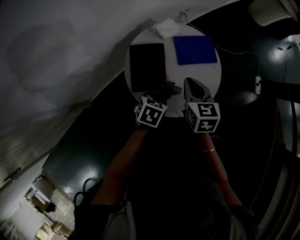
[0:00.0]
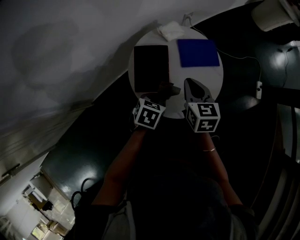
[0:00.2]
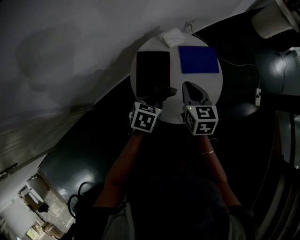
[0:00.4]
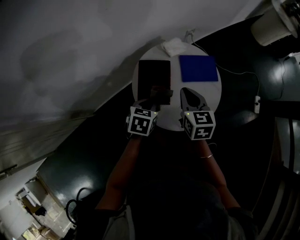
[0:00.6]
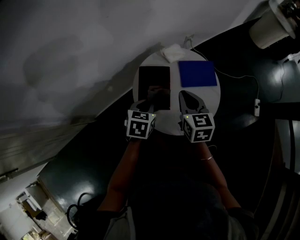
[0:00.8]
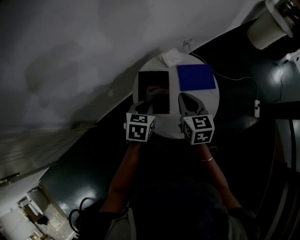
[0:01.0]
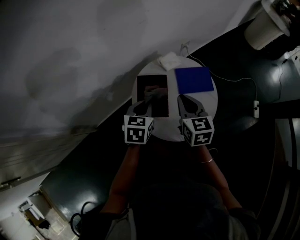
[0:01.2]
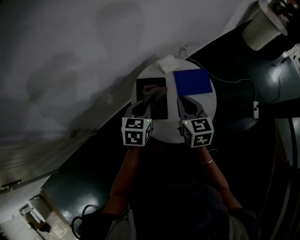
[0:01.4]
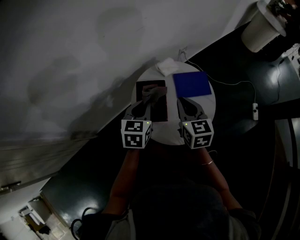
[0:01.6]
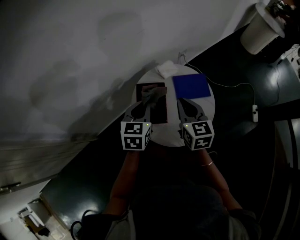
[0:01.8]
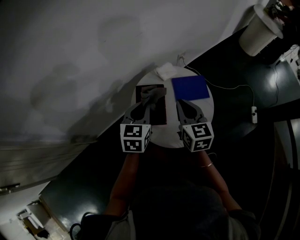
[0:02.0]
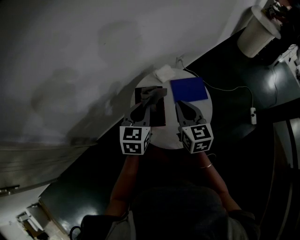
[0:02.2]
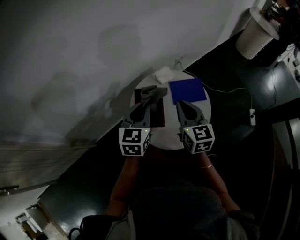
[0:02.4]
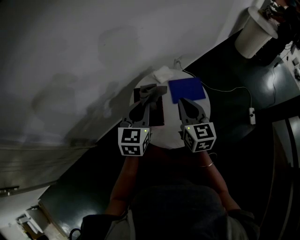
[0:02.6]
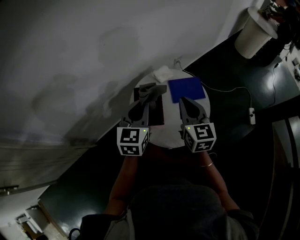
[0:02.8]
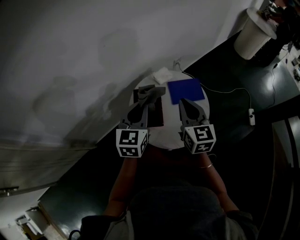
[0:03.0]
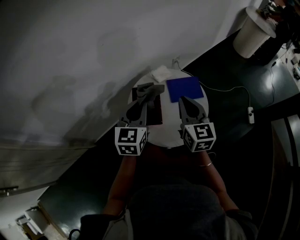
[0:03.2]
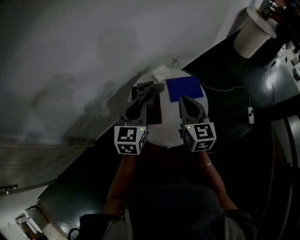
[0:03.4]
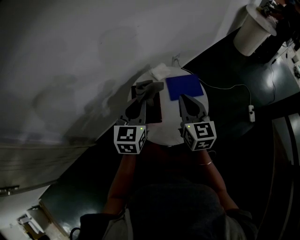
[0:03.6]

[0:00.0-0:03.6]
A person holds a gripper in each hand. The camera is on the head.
0:00.0 to 0:01.8: The left gripper travels upward, forward and to the left by some 20 cm, and turns by roughly 40 degrees; the right gripper moves upward, roughly 10 cm.
0:01.8 to 0:03.6: The two grippers go approximately 5 cm upward.

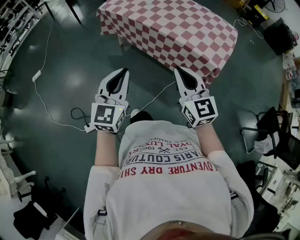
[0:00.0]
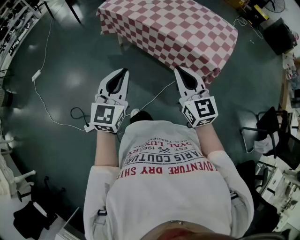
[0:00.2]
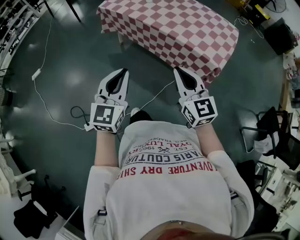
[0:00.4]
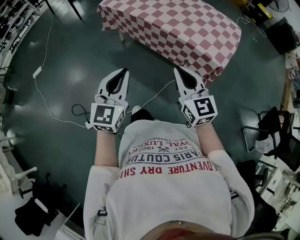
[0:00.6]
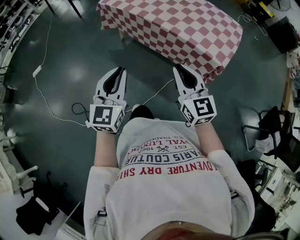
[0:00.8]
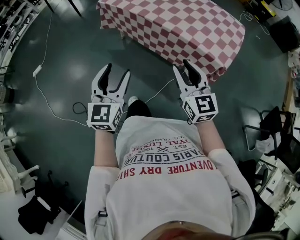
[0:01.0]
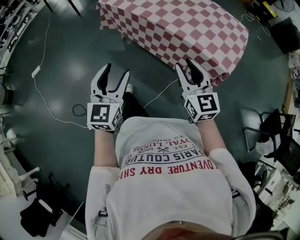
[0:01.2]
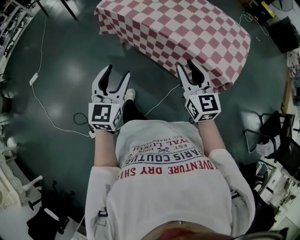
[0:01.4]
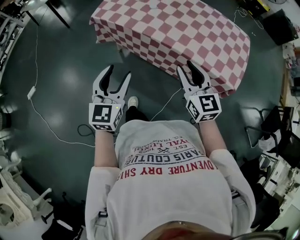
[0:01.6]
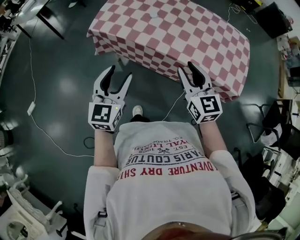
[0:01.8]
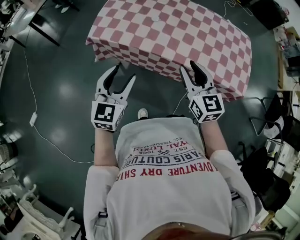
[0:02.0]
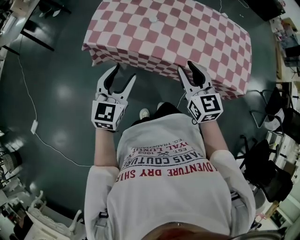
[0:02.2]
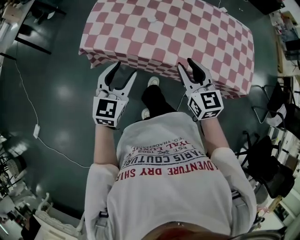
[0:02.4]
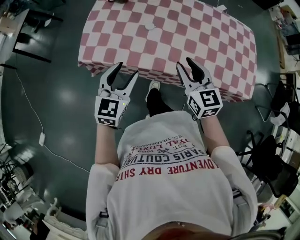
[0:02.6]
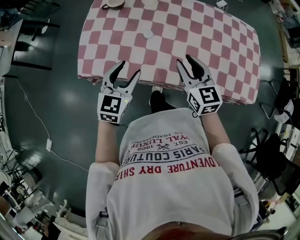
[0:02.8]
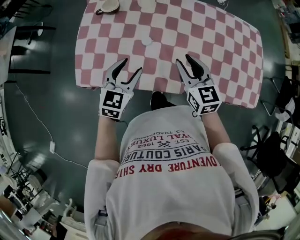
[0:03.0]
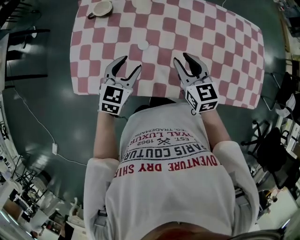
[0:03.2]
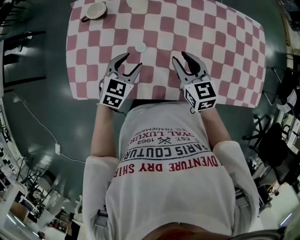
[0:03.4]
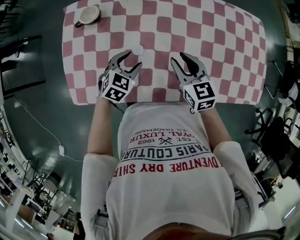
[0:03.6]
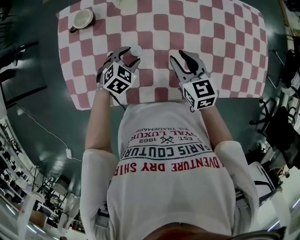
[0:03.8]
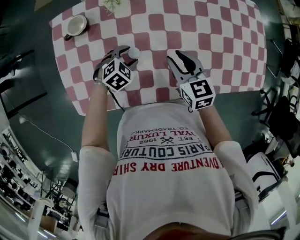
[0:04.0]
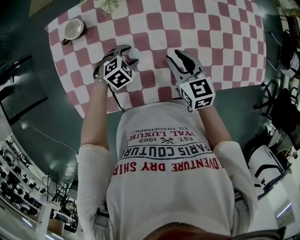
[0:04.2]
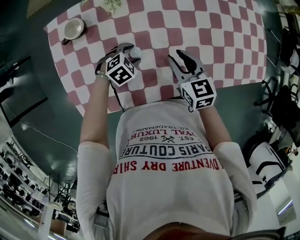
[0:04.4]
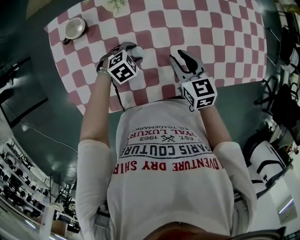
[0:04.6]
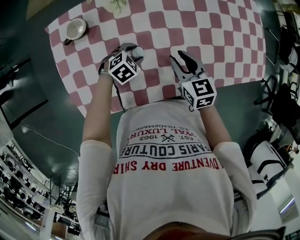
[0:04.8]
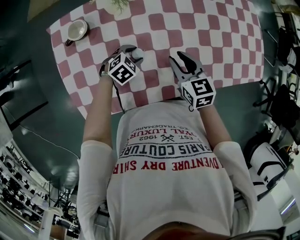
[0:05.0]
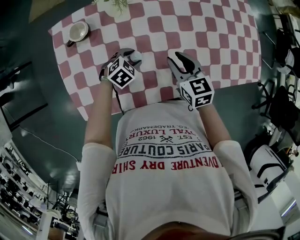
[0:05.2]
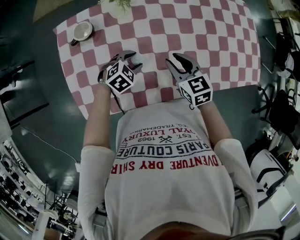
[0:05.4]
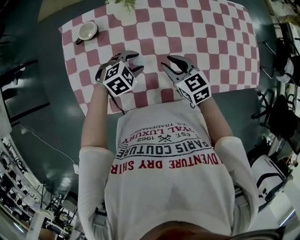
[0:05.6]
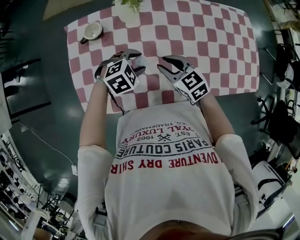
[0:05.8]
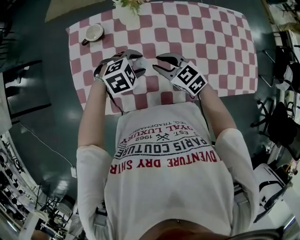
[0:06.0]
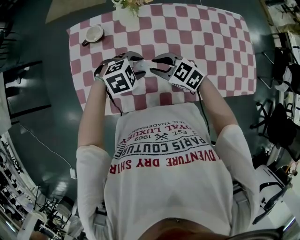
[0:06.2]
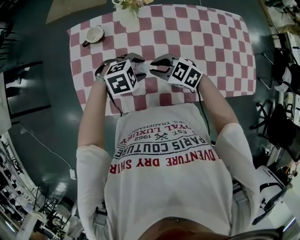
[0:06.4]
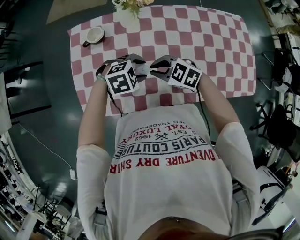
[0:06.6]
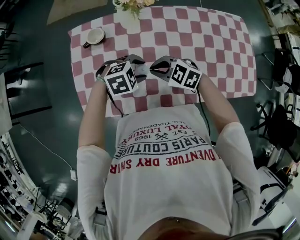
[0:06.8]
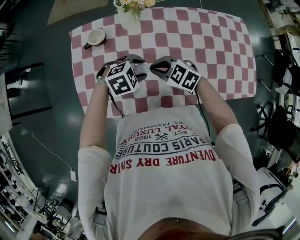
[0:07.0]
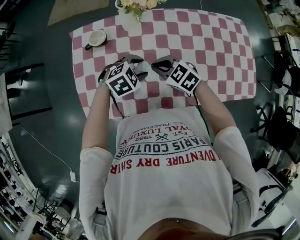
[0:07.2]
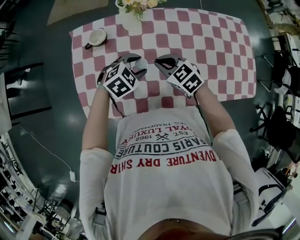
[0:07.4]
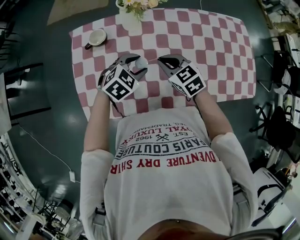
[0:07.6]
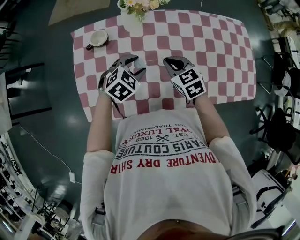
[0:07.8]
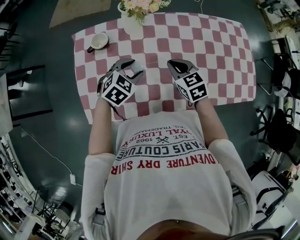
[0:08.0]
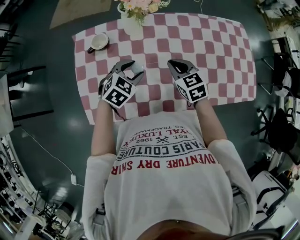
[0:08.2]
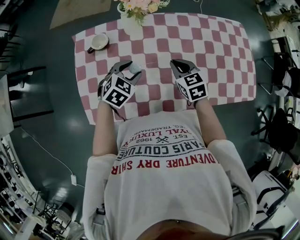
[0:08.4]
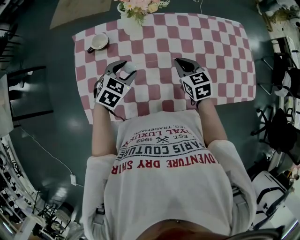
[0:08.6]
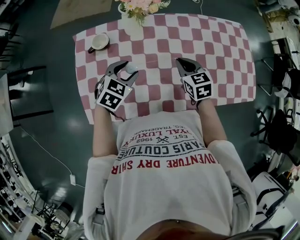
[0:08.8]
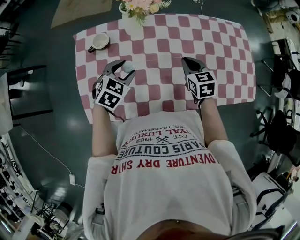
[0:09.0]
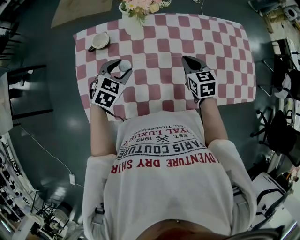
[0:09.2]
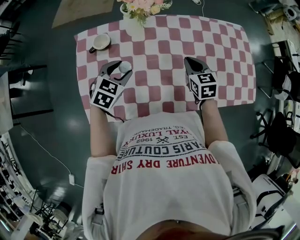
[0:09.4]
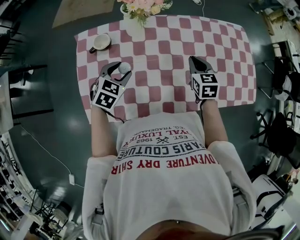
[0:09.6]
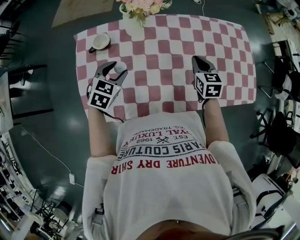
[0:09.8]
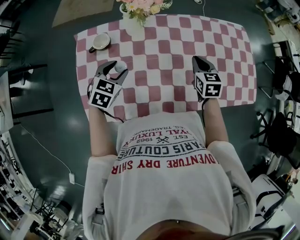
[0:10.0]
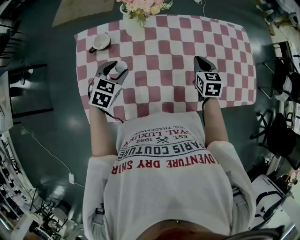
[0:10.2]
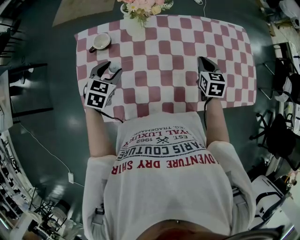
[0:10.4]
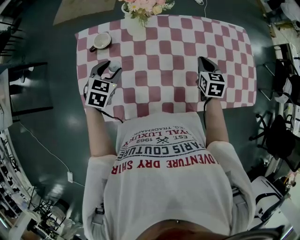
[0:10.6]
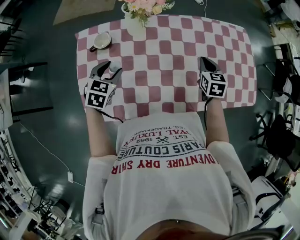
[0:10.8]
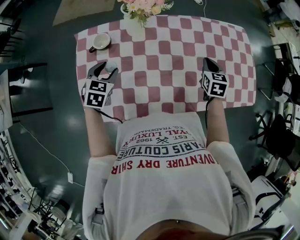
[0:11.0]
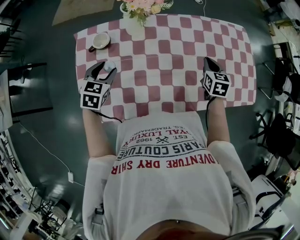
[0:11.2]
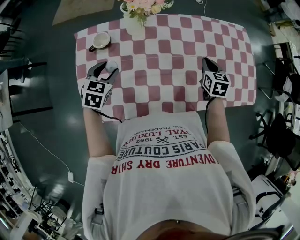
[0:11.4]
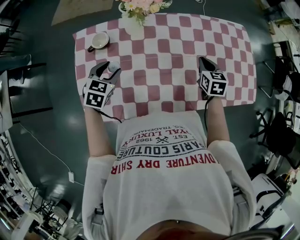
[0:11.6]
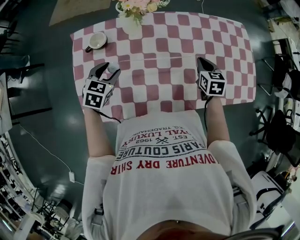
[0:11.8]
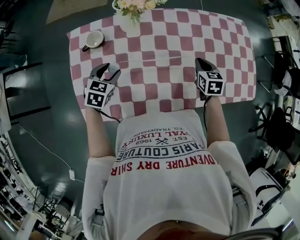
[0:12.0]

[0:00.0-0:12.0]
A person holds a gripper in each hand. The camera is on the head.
0:00.0 to 0:01.6: The right gripper is displaced forward by roughly 25 cm, and opens. The left gripper moves forward and to the left, some 30 cm, and opens up.
0:01.6 to 0:03.0: The two grippers go about 40 cm forward. The left gripper rotates about 40 degrees. The right gripper changes its angle by about 20 degrees.
0:03.0 to 0:04.4: The right gripper shifts some 10 cm downward, and changes its angle by roughly 20 degrees; the left gripper goes about 20 cm downward, and angles its fingers downward, by about 40 degrees.
0:04.4 to 0:06.0: The right gripper moves some 10 cm, and rotates some 40 degrees. Meanwhile the left gripper moves upward, about 15 cm.
0:06.0 to 0:07.6: The right gripper closes.
0:07.6 to 0:09.0: The left gripper shifts roughly 5 cm to the left, while the right gripper goes some 10 cm to the right, and changes its angle by approximately 30 degrees.
0:09.0 to 0:10.4: The left gripper is displaced to the left by about 5 cm. The right gripper is displaced to the right by some 10 cm.
0:10.4 to 0:12.0: The grippers stay close to where they were, moving slightly.

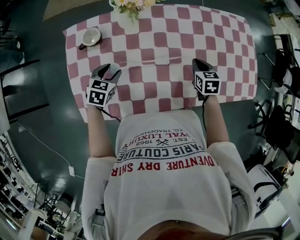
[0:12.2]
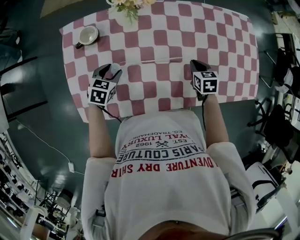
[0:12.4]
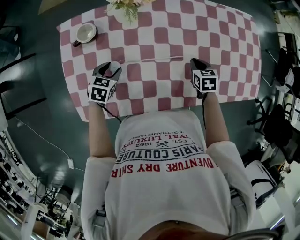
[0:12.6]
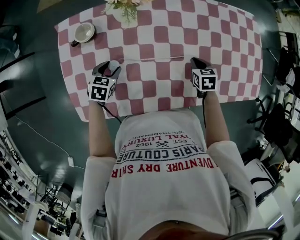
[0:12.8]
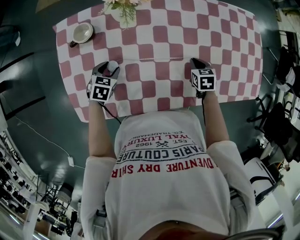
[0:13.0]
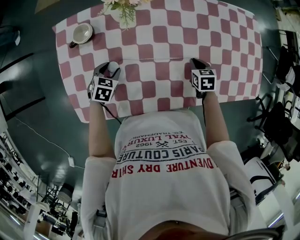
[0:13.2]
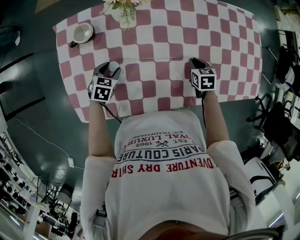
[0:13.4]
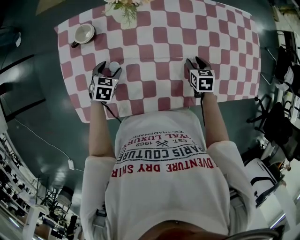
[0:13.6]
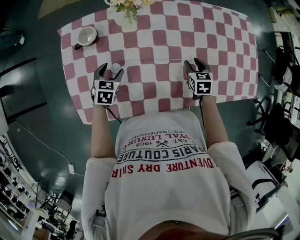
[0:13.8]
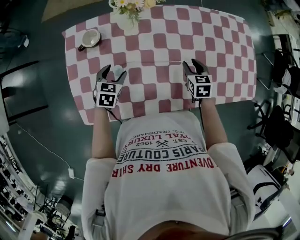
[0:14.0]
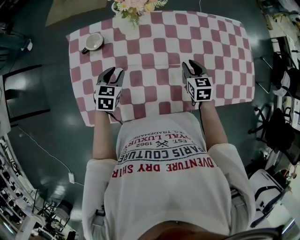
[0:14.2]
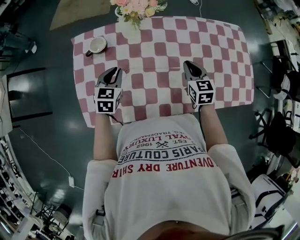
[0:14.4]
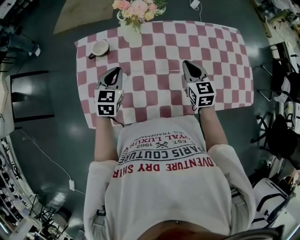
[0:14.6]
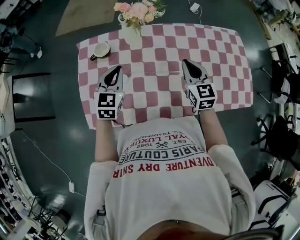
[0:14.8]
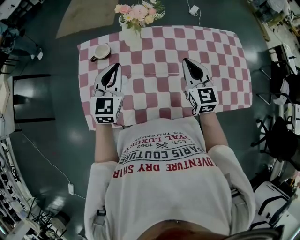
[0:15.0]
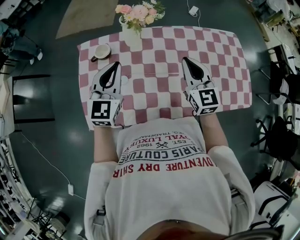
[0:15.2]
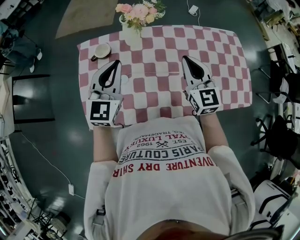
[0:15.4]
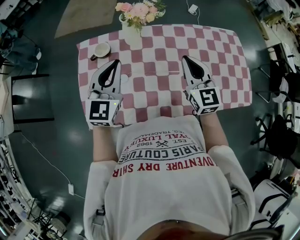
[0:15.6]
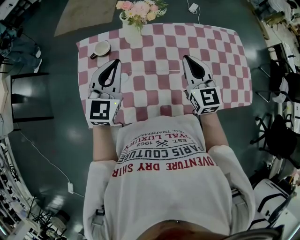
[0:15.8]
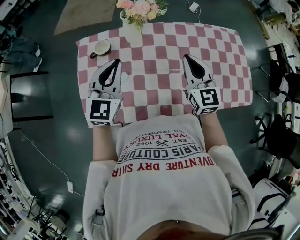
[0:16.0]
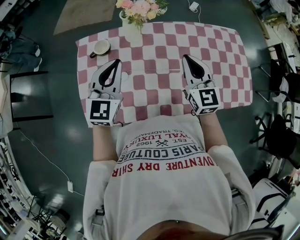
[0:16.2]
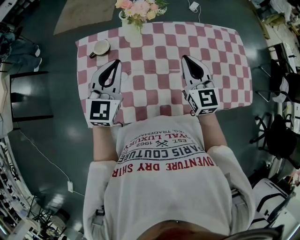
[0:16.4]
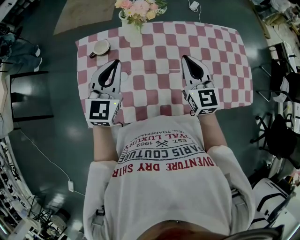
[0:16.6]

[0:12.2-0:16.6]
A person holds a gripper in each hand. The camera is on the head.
0:12.2 to 0:13.6: Both grippers move downward, approximately 5 cm. The right gripper opens its fingers.
0:13.6 to 0:15.2: Both grippers travel together upward, some 30 cm. The left gripper angles its fingers upward, by roughly 50 degrees, and closes; the right gripper angles its fingers upward, by roughly 50 degrees, and closes its fingers.
0:15.2 to 0:16.6: Both grippers stay about where they are.

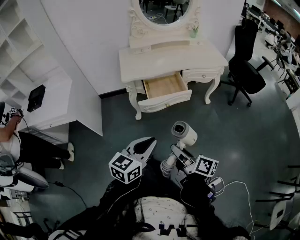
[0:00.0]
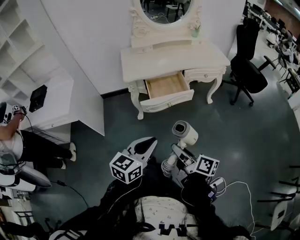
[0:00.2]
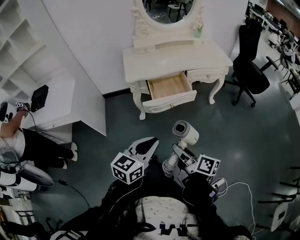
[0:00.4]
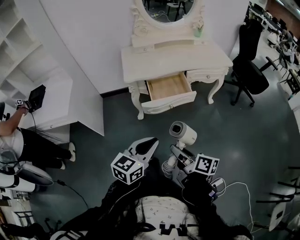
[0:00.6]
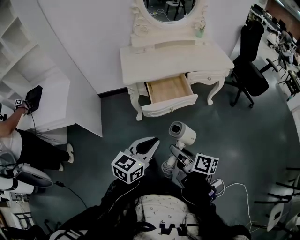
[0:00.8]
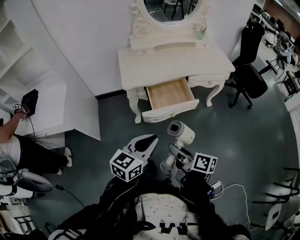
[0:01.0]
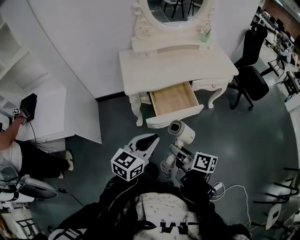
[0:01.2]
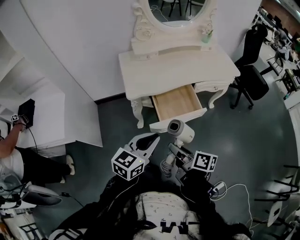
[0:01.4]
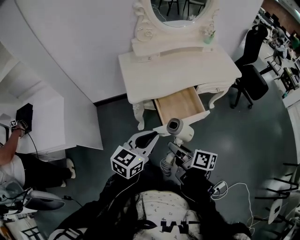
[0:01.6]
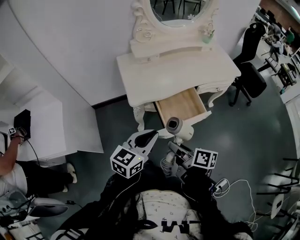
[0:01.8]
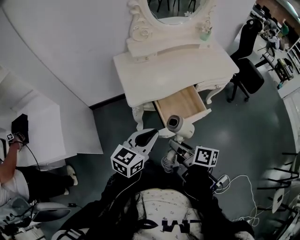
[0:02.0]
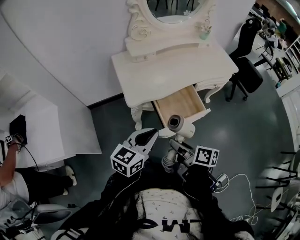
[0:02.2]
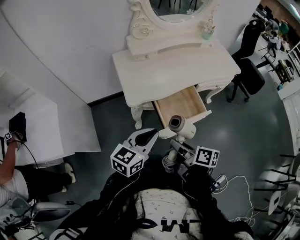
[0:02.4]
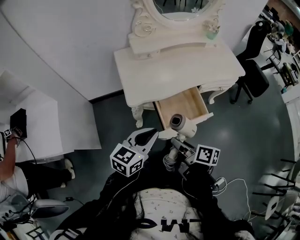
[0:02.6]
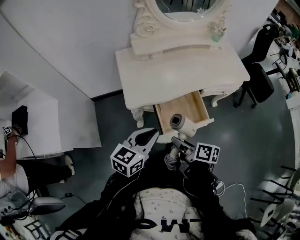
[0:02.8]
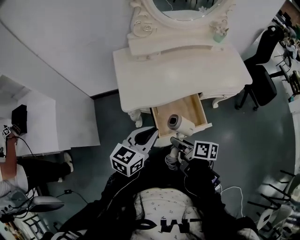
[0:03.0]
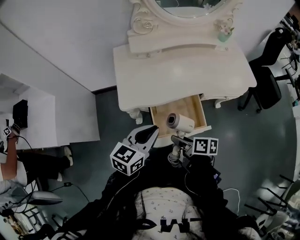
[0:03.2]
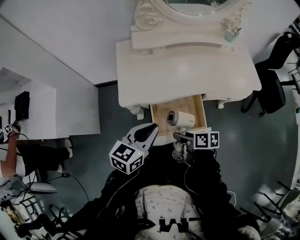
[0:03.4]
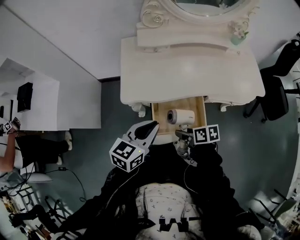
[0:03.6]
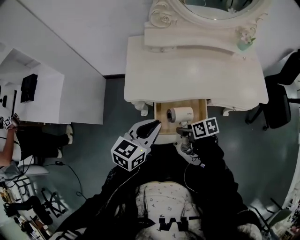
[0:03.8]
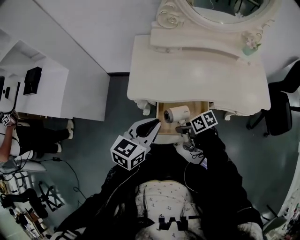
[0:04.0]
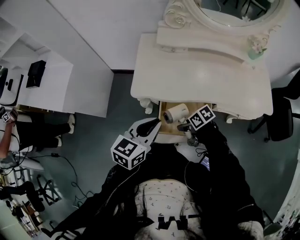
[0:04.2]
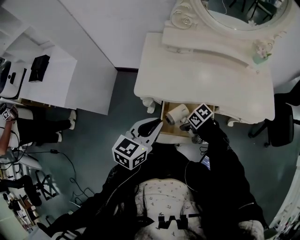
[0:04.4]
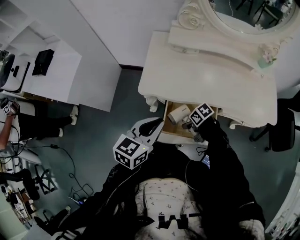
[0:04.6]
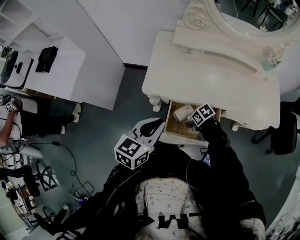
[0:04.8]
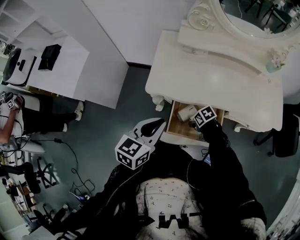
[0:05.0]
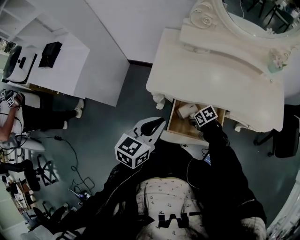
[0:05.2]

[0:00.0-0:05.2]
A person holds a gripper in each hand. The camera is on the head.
0:00.0 to 0:01.8: The grippers both shift forward and to the left by approximately 30 cm.
0:01.8 to 0:03.4: The right gripper moves forward, downward and to the right, some 20 cm, and changes its angle by some 30 degrees. The left gripper goes about 15 cm forward and to the right.
0:03.4 to 0:05.2: The right gripper goes about 15 cm downward, and turns by about 60 degrees. The left gripper turns by approximately 20 degrees.
